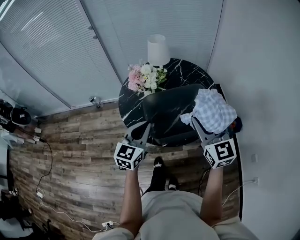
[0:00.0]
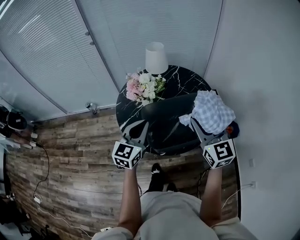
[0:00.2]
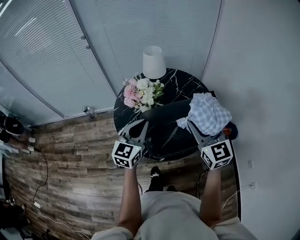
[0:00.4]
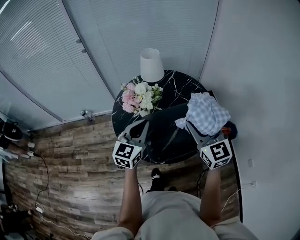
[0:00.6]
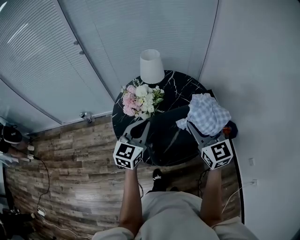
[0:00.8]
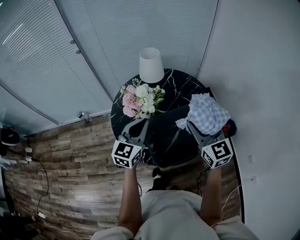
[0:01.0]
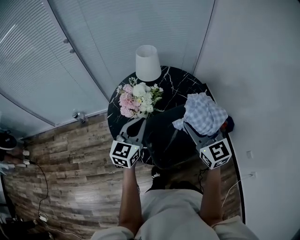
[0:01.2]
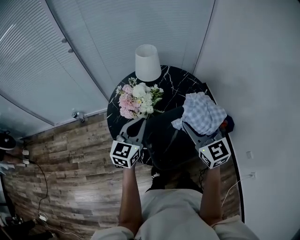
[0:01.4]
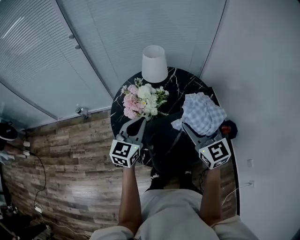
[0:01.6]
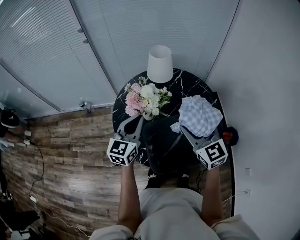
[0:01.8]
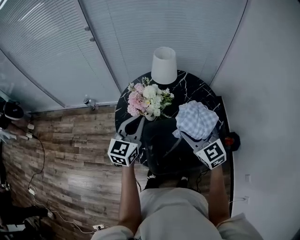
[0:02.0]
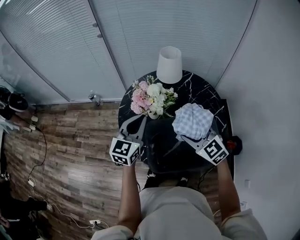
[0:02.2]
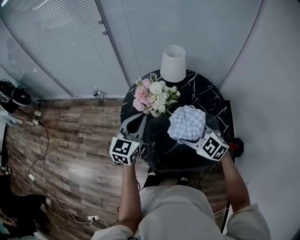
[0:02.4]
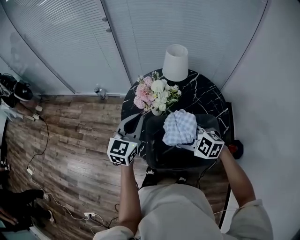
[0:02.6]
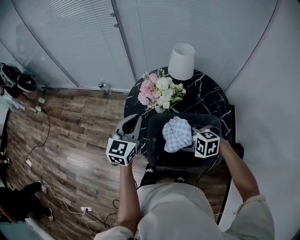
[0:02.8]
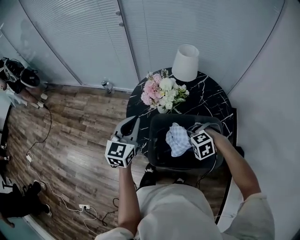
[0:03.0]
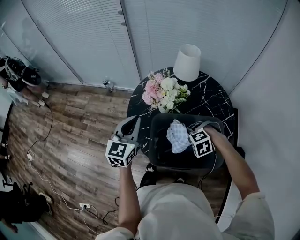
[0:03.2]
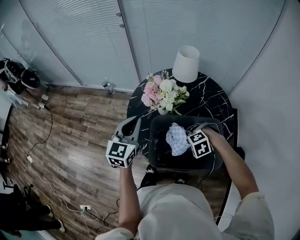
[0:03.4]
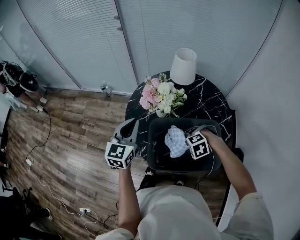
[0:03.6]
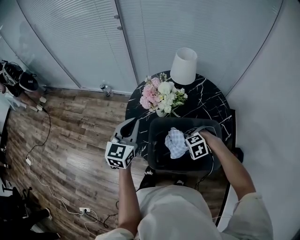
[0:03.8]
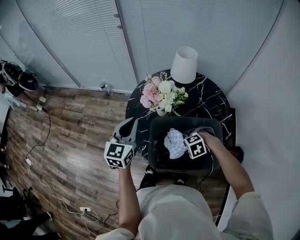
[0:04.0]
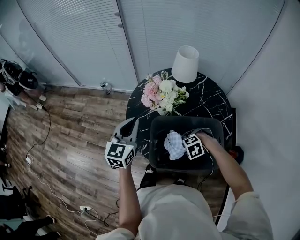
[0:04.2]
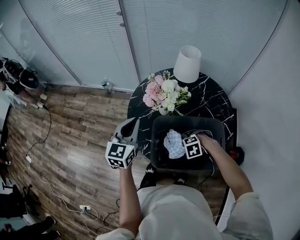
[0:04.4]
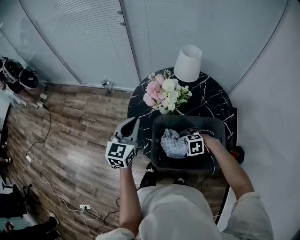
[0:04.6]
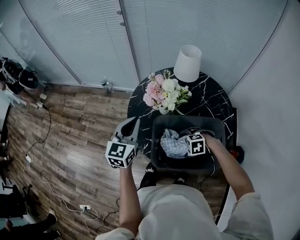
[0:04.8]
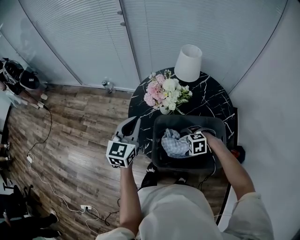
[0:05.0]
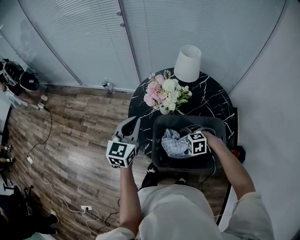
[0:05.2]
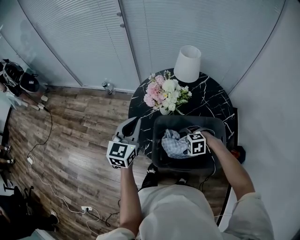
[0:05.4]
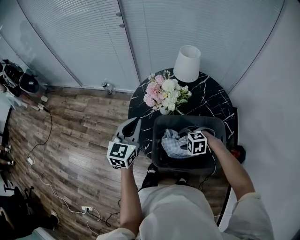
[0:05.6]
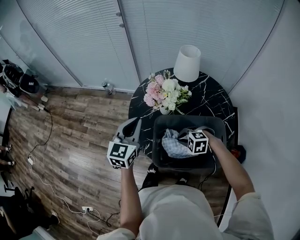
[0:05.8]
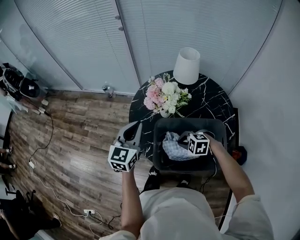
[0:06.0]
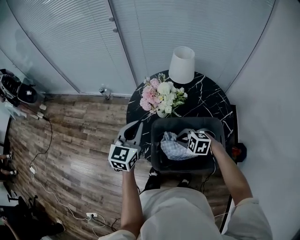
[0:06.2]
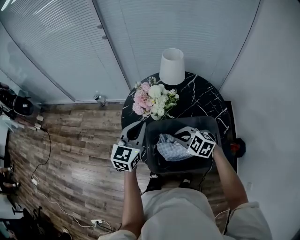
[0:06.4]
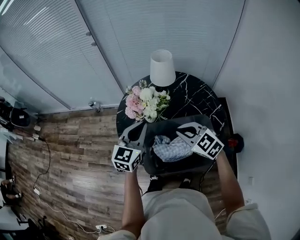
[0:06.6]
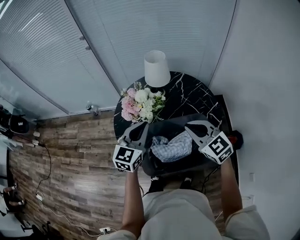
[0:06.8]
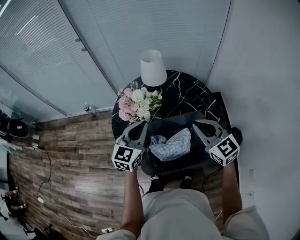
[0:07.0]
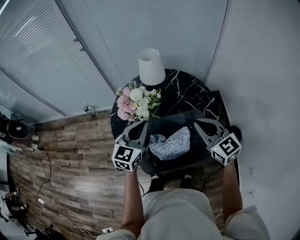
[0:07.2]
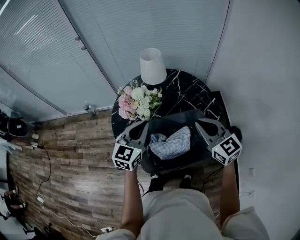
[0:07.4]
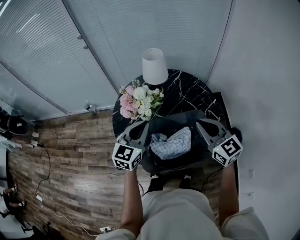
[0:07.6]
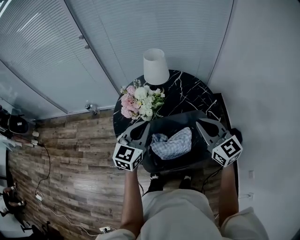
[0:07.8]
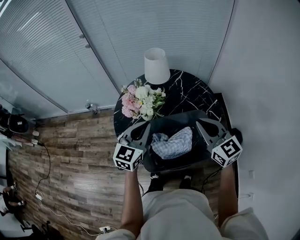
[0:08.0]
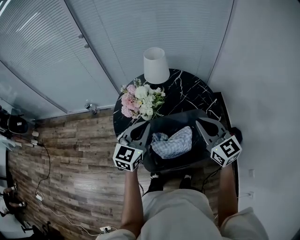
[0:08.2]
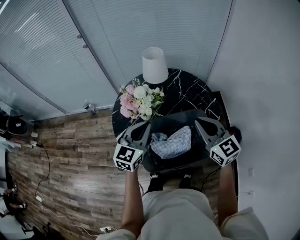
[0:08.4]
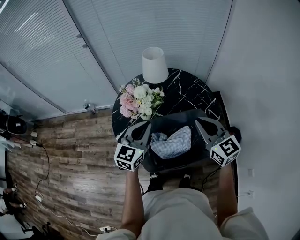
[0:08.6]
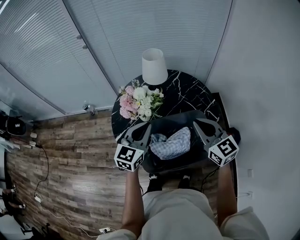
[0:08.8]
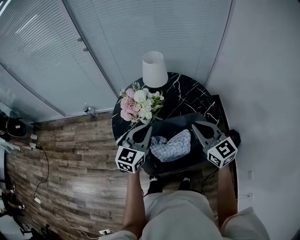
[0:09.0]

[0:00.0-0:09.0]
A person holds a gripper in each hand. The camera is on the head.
0:00.0 to 0:01.6: The right gripper travels forward and to the left by about 15 cm; the left gripper moves forward, approximately 20 cm.
0:01.6 to 0:03.0: The left gripper changes place by about 10 cm, and swivels roughly 30 degrees. Meanwhile the right gripper goes approximately 20 cm downward, and angles its fingers downward, by roughly 70 degrees.
0:03.0 to 0:04.4: The right gripper moves downward, roughly 10 cm.
0:04.4 to 0:06.0: The right gripper changes place by approximately 5 cm, turns by approximately 30 degrees, and closes its fingers.
0:06.0 to 0:07.6: The left gripper moves roughly 15 cm, and changes its angle by about 20 degrees; the right gripper moves upward, some 25 cm, and tips its fingers upward by roughly 50 degrees.
0:07.6 to 0:09.0: The grippers stay close to where they were, moving slightly.

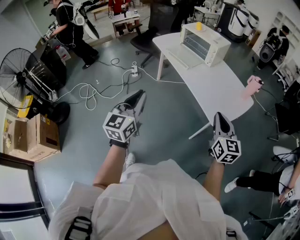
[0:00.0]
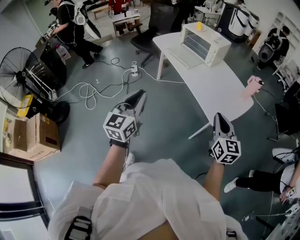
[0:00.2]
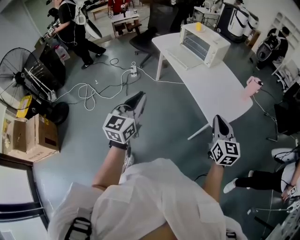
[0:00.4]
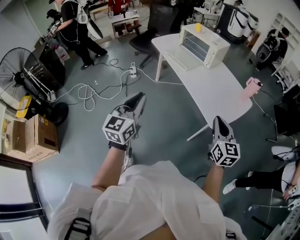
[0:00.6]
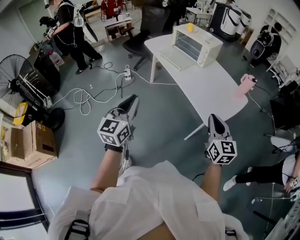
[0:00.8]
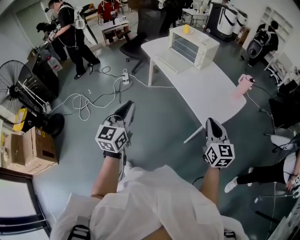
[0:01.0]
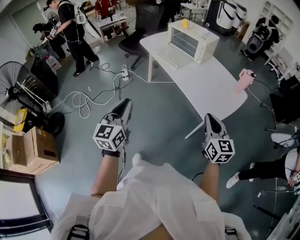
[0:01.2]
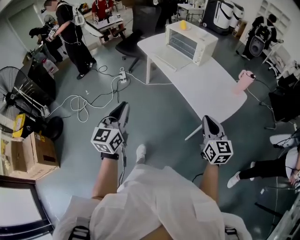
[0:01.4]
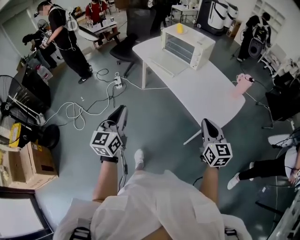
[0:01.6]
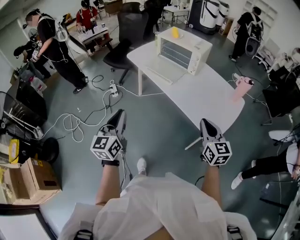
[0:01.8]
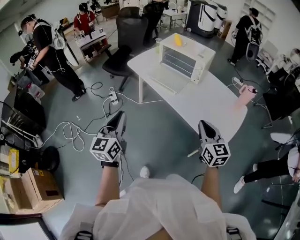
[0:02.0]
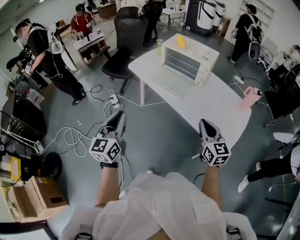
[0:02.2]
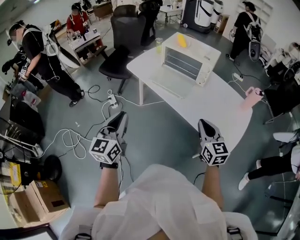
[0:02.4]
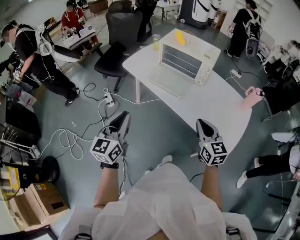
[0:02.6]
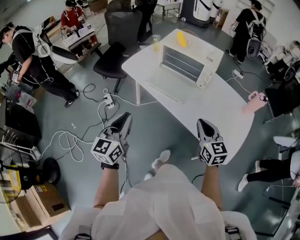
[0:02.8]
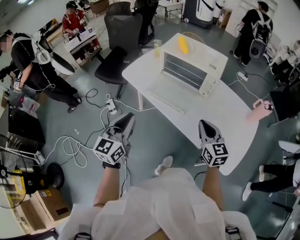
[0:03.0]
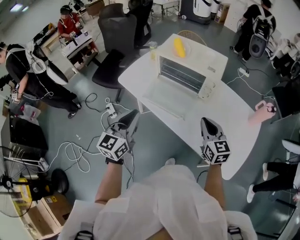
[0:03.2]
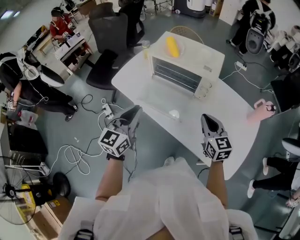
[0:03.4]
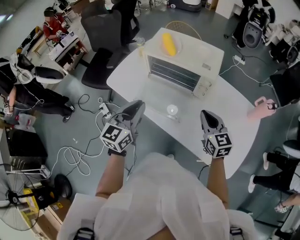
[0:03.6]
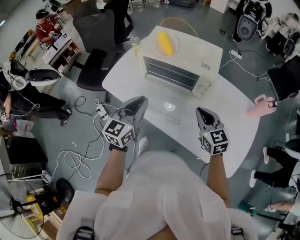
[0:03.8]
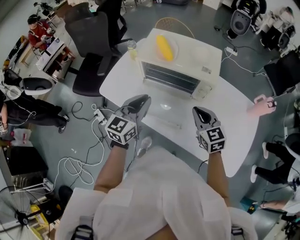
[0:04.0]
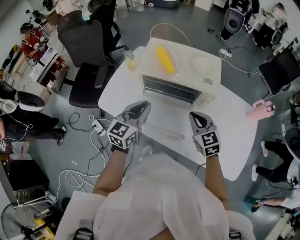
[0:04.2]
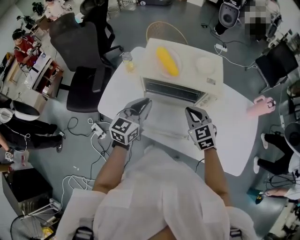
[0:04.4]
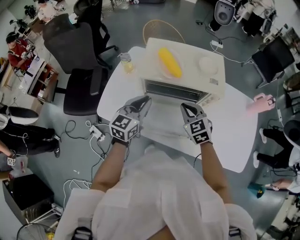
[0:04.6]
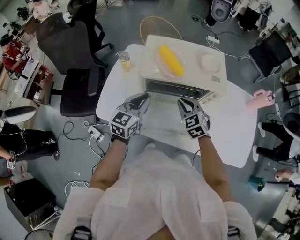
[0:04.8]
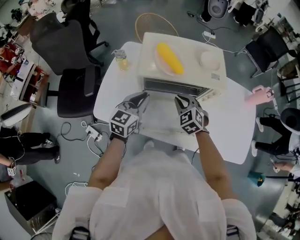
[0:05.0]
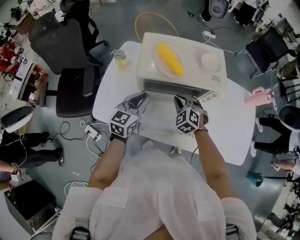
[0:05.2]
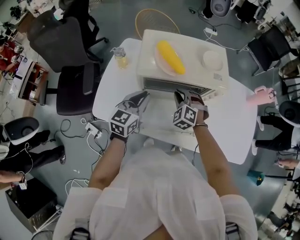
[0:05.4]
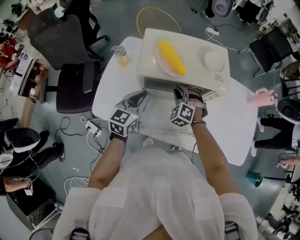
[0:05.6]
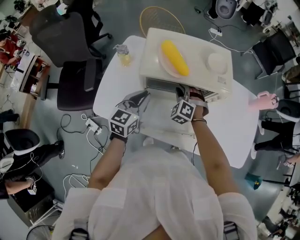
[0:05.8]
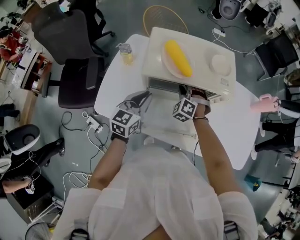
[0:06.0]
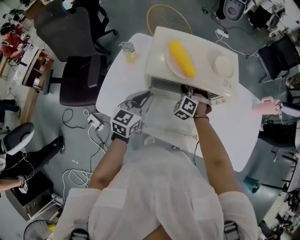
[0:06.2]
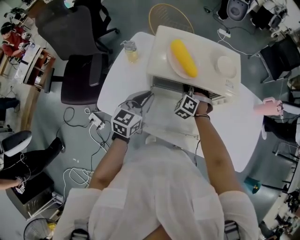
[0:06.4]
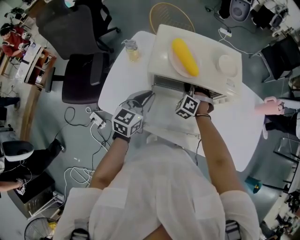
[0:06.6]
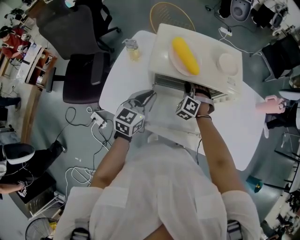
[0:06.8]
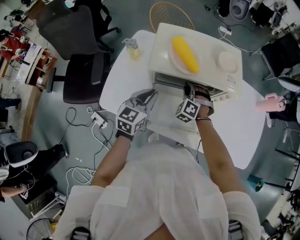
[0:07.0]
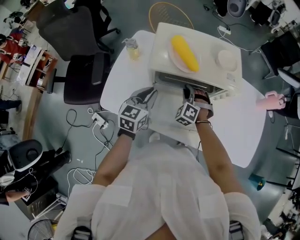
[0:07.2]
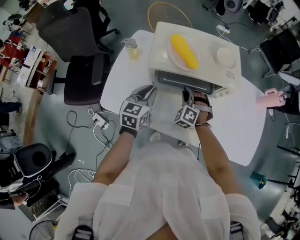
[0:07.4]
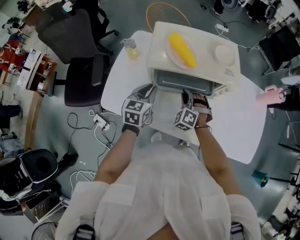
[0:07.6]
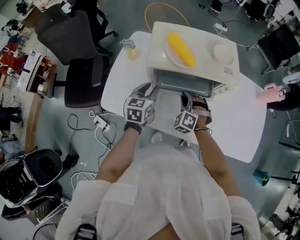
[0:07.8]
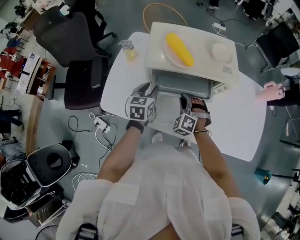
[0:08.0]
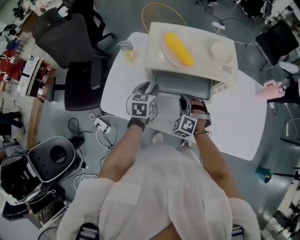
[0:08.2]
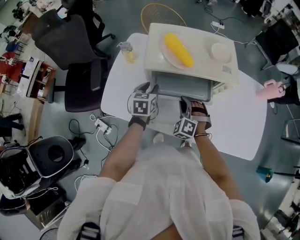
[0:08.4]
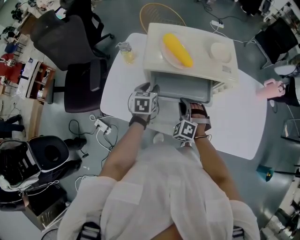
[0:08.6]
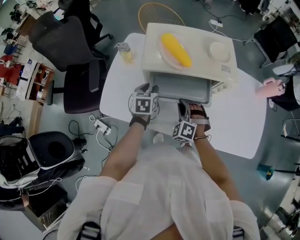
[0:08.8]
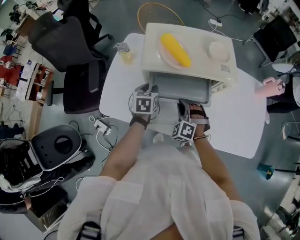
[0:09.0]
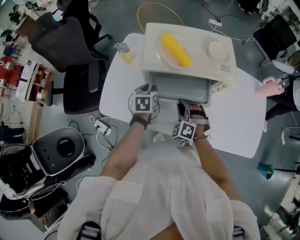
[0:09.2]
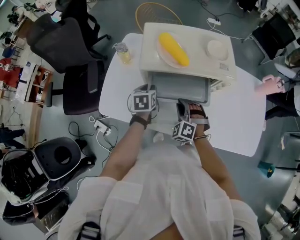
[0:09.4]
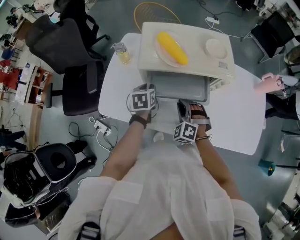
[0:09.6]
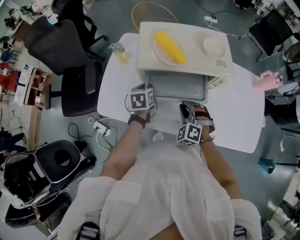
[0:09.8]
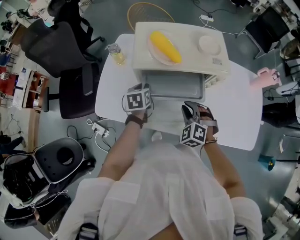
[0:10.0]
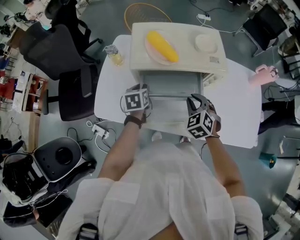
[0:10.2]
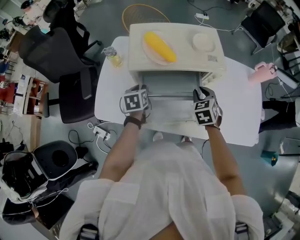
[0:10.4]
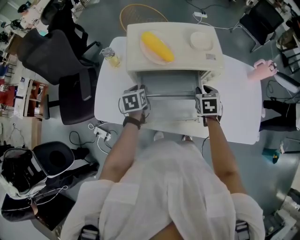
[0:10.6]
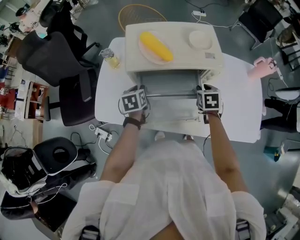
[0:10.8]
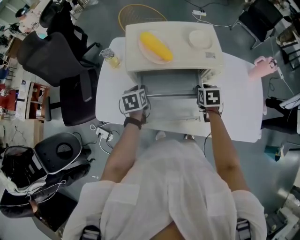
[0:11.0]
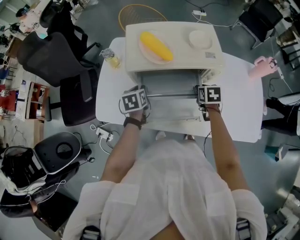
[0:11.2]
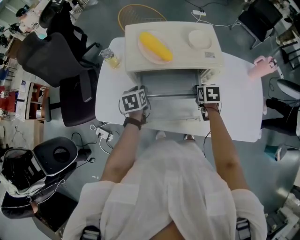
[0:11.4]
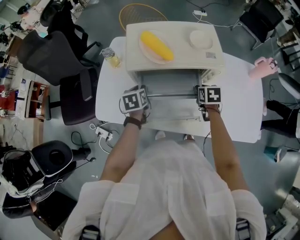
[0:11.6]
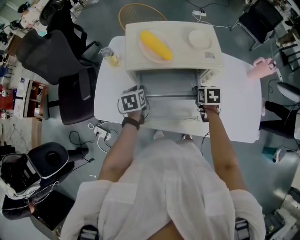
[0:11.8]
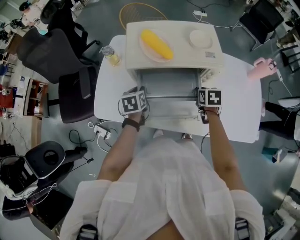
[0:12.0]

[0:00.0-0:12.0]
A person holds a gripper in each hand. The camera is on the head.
0:00.0 to 0:01.6: The two grippers go approximately 10 cm forward.
0:01.6 to 0:03.0: Both grippers move forward, approximately 40 cm.
0:03.0 to 0:04.4: Both grippers move forward, about 35 cm. The right gripper swivels roughly 20 degrees; the left gripper turns by approximately 30 degrees.
0:04.4 to 0:06.0: The right gripper moves forward, downward and to the left, approximately 20 cm, rotates roughly 50 degrees, and opens up; the left gripper heads downward, forward and to the left, covering some 10 cm.
0:06.0 to 0:07.6: The right gripper is displaced backward by approximately 10 cm.
0:07.6 to 0:09.0: The left gripper travels downward by about 5 cm.
0:09.0 to 0:10.4: The right gripper goes approximately 15 cm to the right and upward, and rotates around the line of its fingers by some 50 degrees, clockwise from behind.
0:10.4 to 0:12.0: The right gripper moves downward, some 5 cm, and turns by roughly 30 degrees.

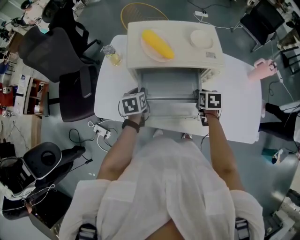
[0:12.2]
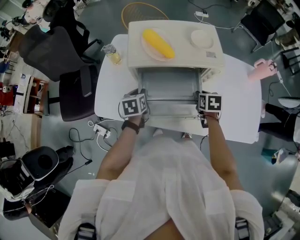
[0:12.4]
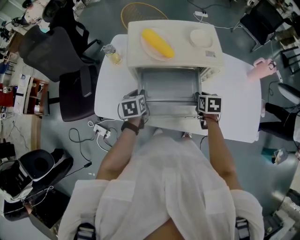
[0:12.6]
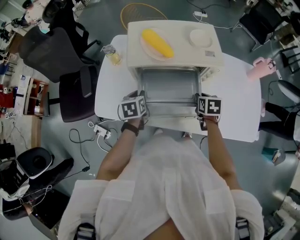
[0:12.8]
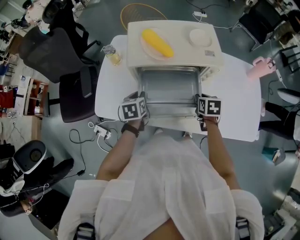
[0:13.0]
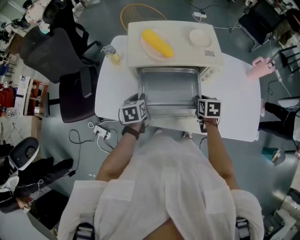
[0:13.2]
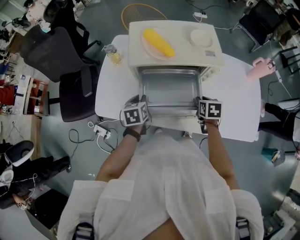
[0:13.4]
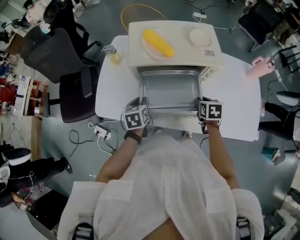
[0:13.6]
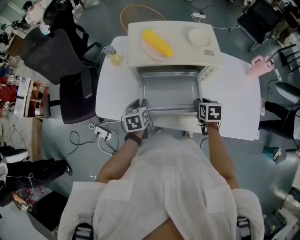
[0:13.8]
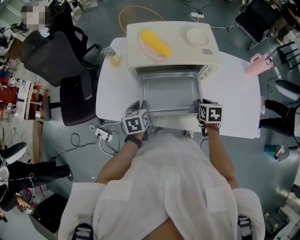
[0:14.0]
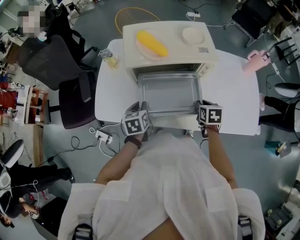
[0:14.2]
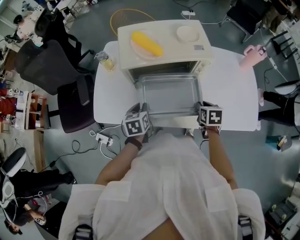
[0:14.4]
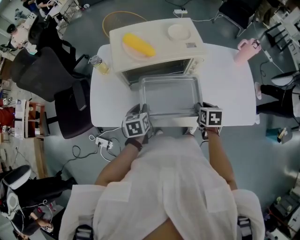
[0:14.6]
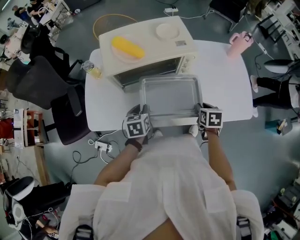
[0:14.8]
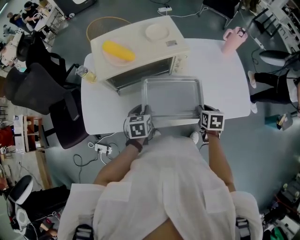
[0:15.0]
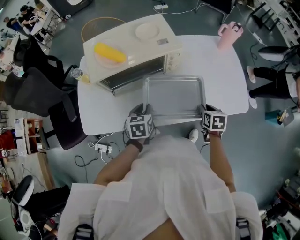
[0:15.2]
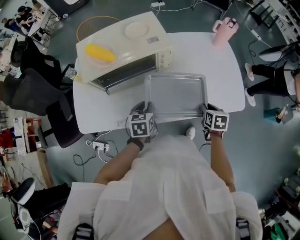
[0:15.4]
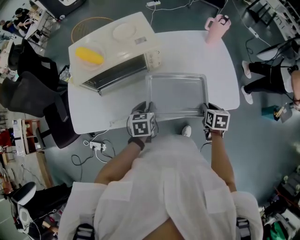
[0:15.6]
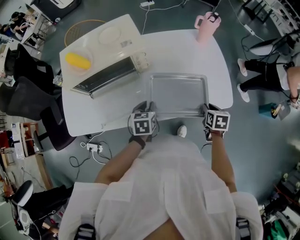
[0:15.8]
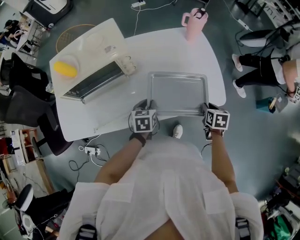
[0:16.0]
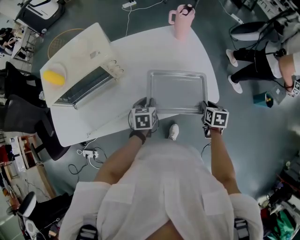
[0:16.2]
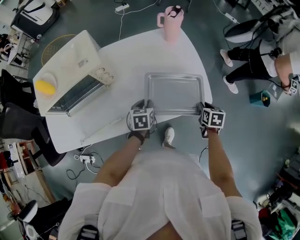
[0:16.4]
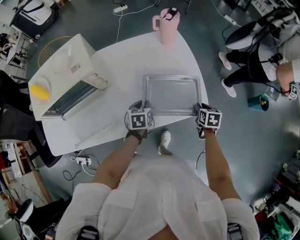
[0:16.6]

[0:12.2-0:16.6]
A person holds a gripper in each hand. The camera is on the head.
0:12.2 to 0:13.6: Both grippers move backward, some 5 cm.
0:13.6 to 0:15.2: The left gripper heads to the right, covering approximately 15 cm, and changes its angle by some 20 degrees. Meanwhile the right gripper goes about 20 cm to the right and backward.
0:15.2 to 0:16.6: The grippers both shift to the right by roughly 35 cm.
